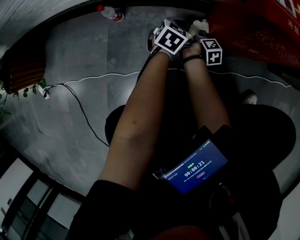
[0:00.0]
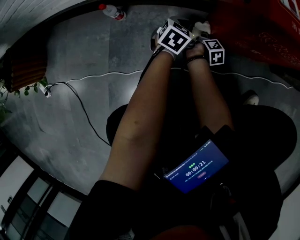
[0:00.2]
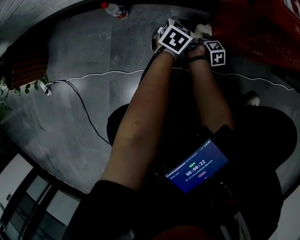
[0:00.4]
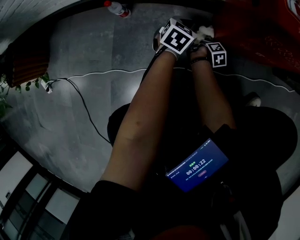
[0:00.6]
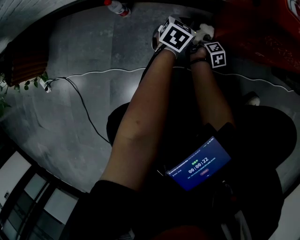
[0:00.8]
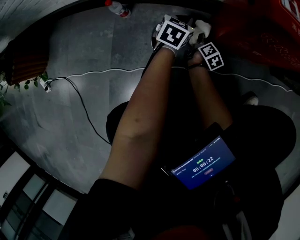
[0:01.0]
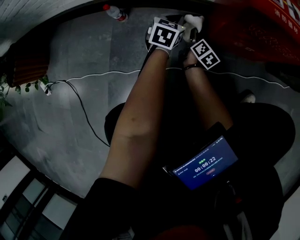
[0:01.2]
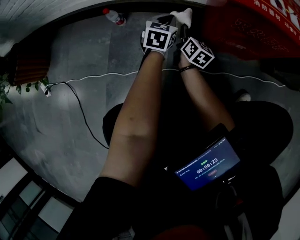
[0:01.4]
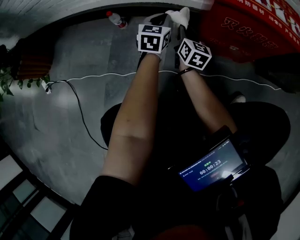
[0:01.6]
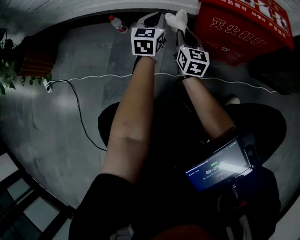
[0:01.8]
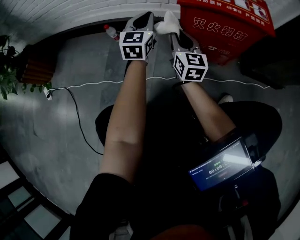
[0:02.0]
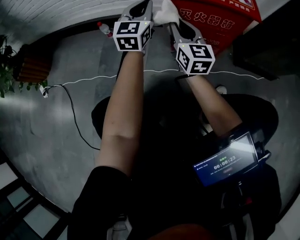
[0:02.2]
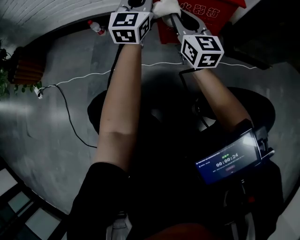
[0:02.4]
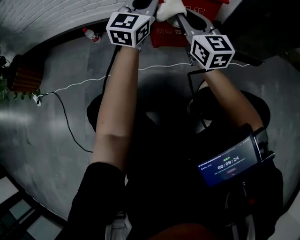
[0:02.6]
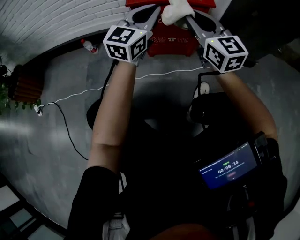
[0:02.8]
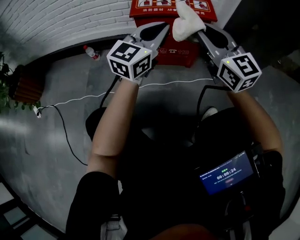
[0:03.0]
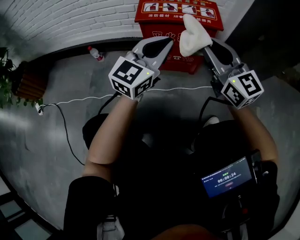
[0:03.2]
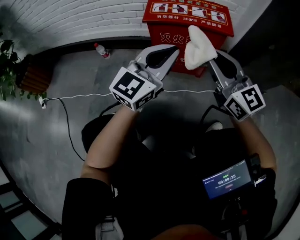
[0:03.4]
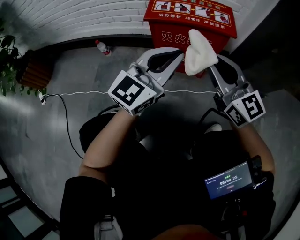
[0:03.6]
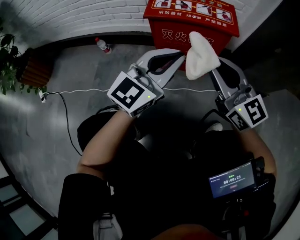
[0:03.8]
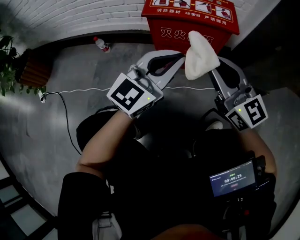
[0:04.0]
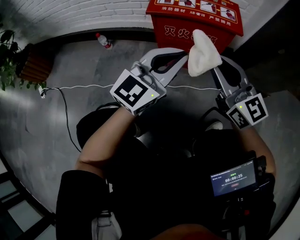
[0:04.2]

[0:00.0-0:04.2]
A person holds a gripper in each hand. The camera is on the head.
0:00.0 to 0:01.4: The right gripper heads upward and to the left, covering some 20 cm, and swivels approximately 50 degrees; the left gripper heads upward, covering about 10 cm, and swivels some 20 degrees.
0:01.4 to 0:02.8: The grippers both shift upward, to the right and backward by about 50 cm. The right gripper rolls counterclockwise, seen from behind, by approximately 40 degrees. Meanwhile the left gripper tilts its fingers some 40 degrees upward.
0:02.8 to 0:04.2: The left gripper travels backward by about 5 cm.

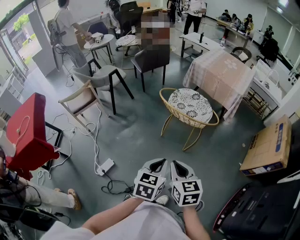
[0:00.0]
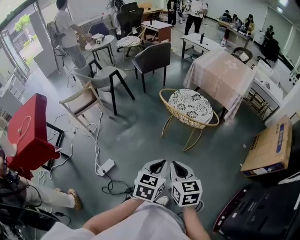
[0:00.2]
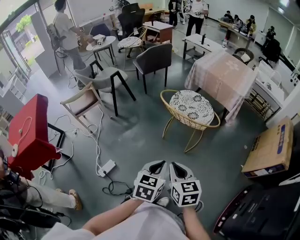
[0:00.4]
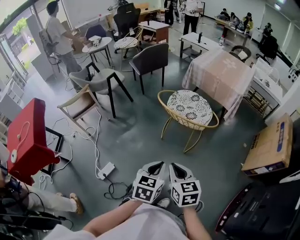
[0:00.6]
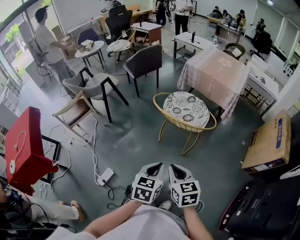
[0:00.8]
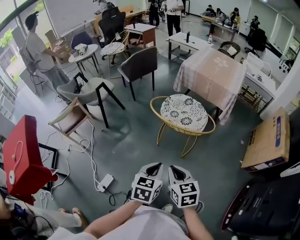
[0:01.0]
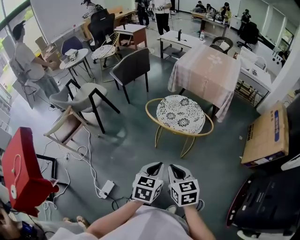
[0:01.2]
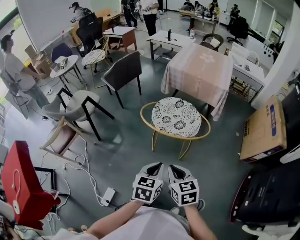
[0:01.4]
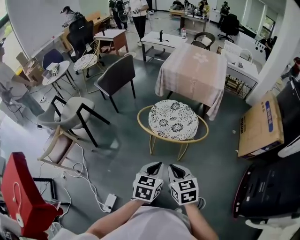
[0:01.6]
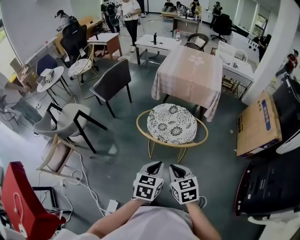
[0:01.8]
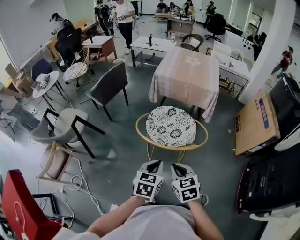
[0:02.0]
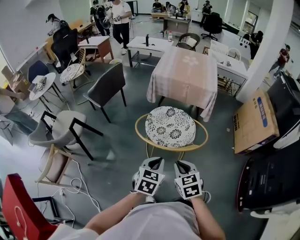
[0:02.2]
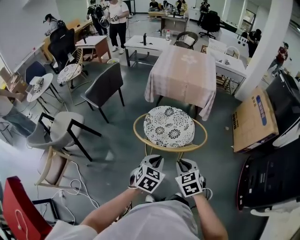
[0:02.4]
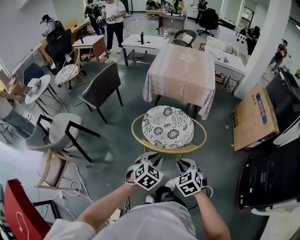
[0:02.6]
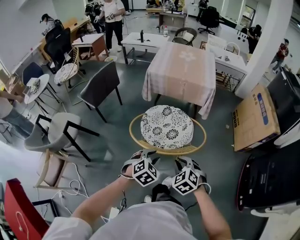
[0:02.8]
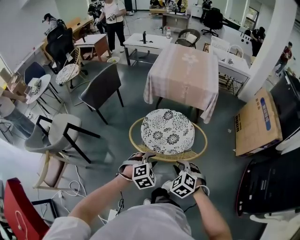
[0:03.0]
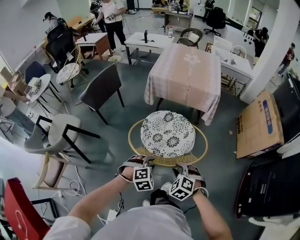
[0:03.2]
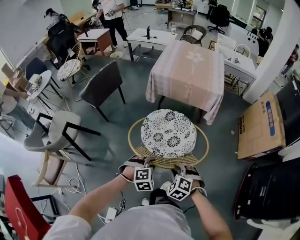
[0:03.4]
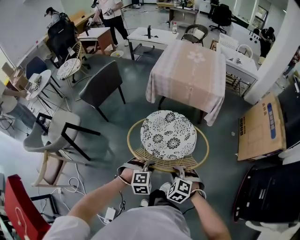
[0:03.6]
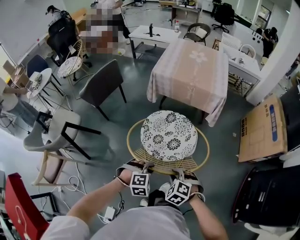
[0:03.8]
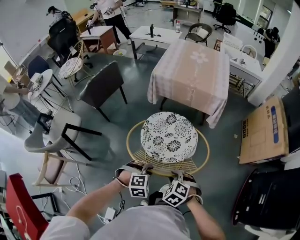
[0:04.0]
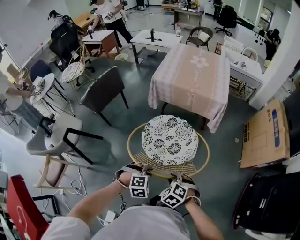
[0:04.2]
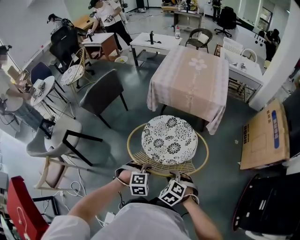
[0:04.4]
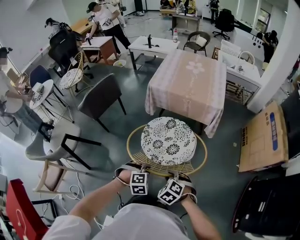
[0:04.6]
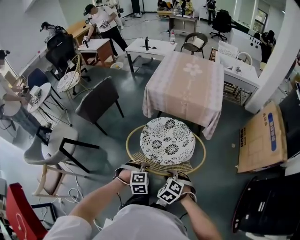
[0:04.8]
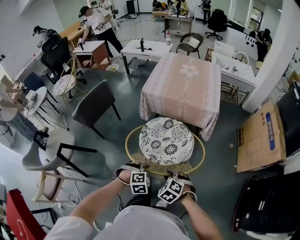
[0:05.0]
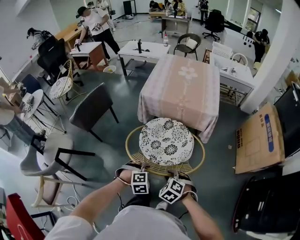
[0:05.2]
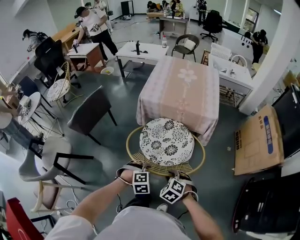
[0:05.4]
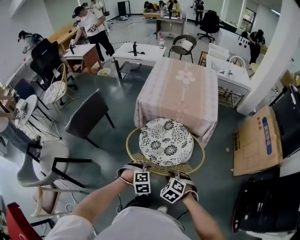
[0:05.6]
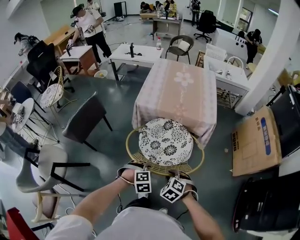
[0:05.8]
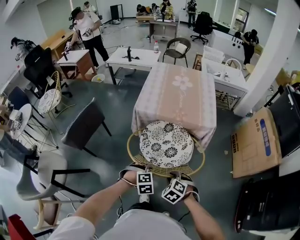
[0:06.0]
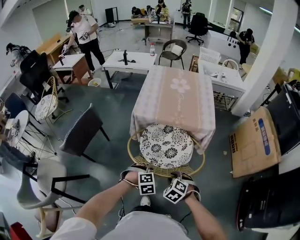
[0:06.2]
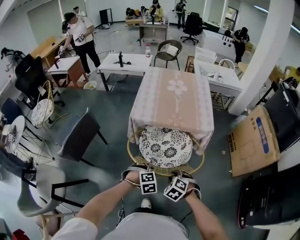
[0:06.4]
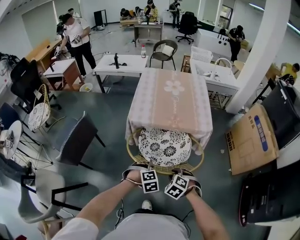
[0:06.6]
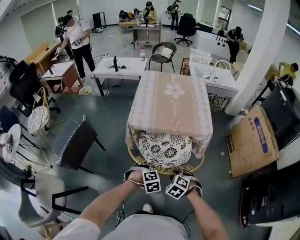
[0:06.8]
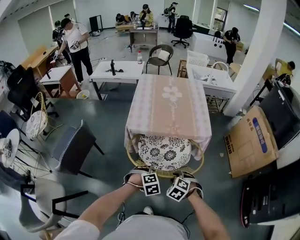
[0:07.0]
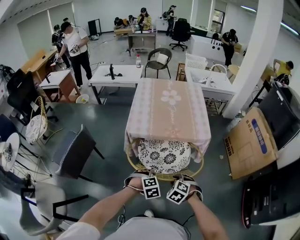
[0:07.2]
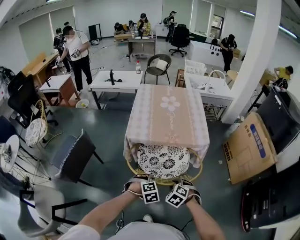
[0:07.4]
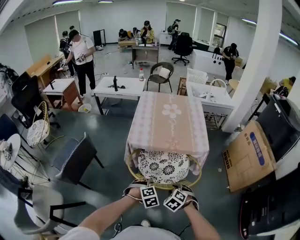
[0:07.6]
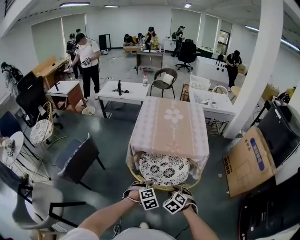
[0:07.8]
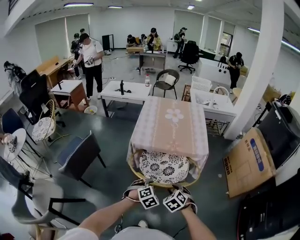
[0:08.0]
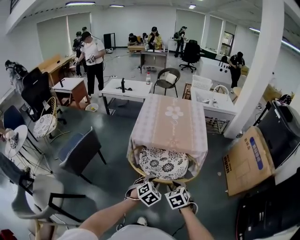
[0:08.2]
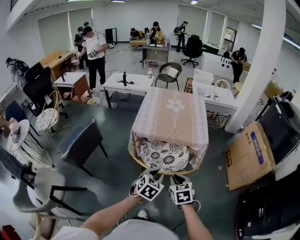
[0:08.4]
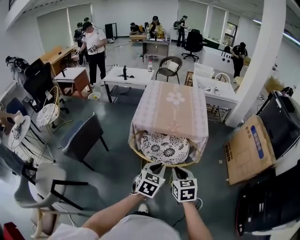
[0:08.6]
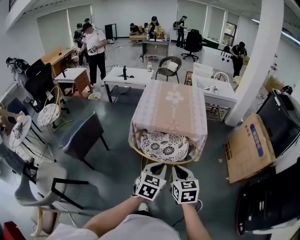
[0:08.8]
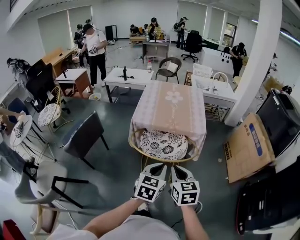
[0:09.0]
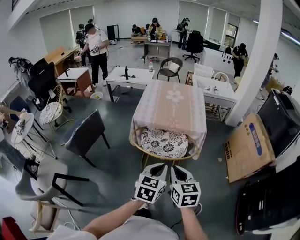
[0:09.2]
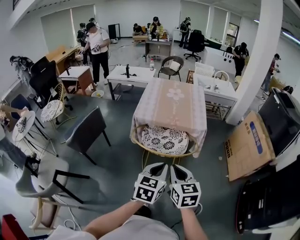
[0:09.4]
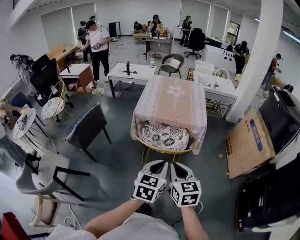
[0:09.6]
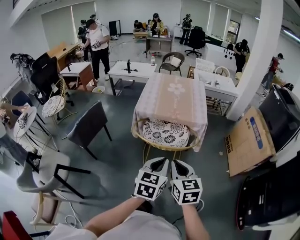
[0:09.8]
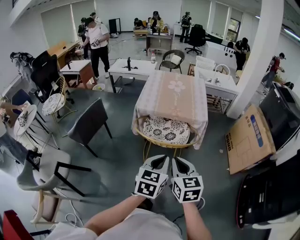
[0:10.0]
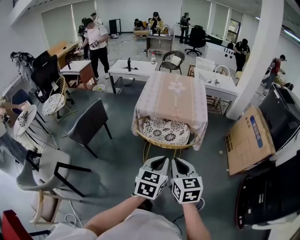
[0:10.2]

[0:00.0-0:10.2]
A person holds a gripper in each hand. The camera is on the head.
0:00.0 to 0:01.4: Both grippers move forward, some 15 cm.
0:01.4 to 0:03.0: Both grippers travel together forward and downward, some 20 cm. The right gripper changes its angle by some 40 degrees, while the left gripper twists about 60 degrees clockwise, seen from behind, and opens.
0:03.0 to 0:04.4: Both grippers move forward, about 5 cm.
0:04.4 to 0:05.8: The two grippers go approximately 20 cm forward.
0:05.8 to 0:07.2: The two grippers go roughly 15 cm forward.
0:07.2 to 0:08.8: Both grippers travel together upward and backward, roughly 20 cm. The left gripper points its fingers about 40 degrees further upward; the right gripper tilts its fingers approximately 40 degrees upward.
0:08.8 to 0:10.2: The grippers both shift backward by about 10 cm.

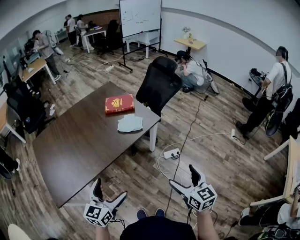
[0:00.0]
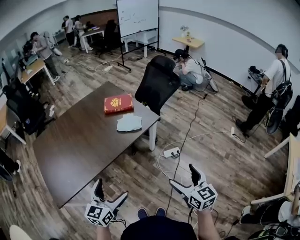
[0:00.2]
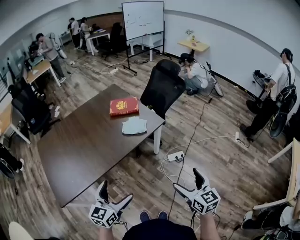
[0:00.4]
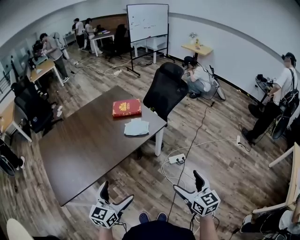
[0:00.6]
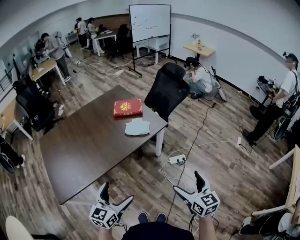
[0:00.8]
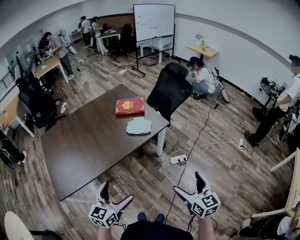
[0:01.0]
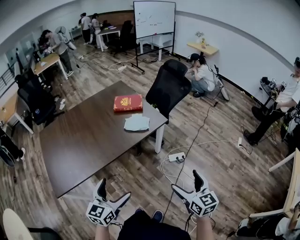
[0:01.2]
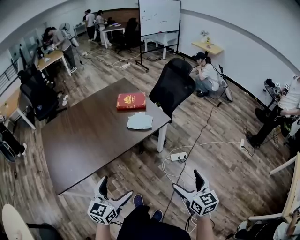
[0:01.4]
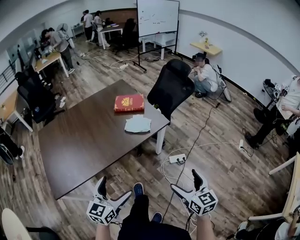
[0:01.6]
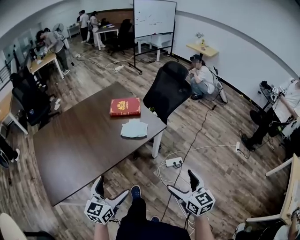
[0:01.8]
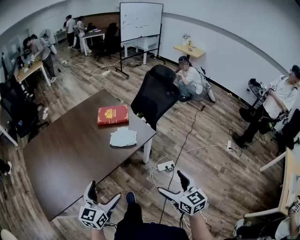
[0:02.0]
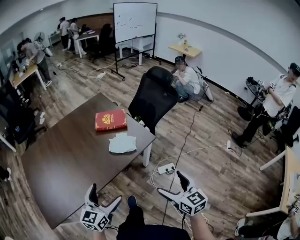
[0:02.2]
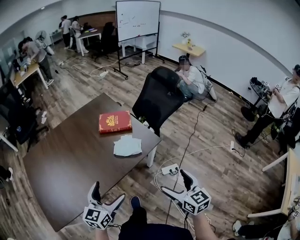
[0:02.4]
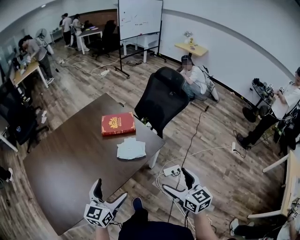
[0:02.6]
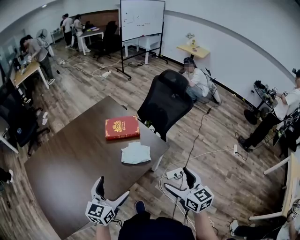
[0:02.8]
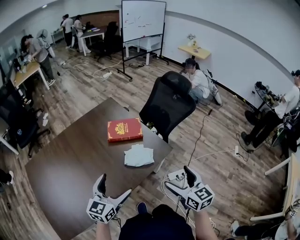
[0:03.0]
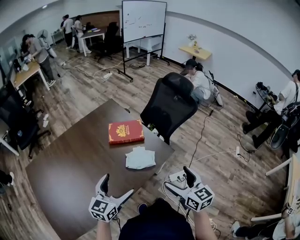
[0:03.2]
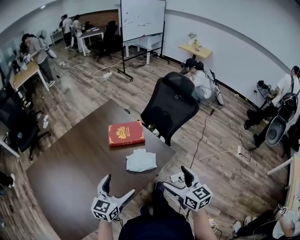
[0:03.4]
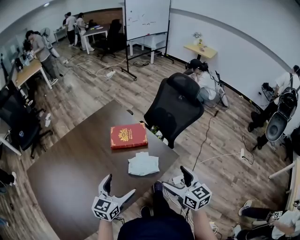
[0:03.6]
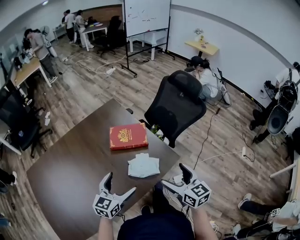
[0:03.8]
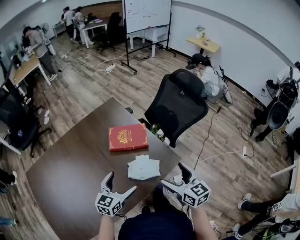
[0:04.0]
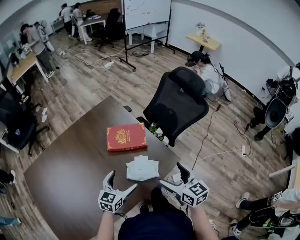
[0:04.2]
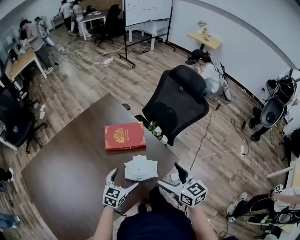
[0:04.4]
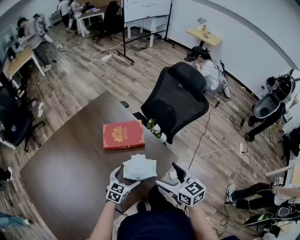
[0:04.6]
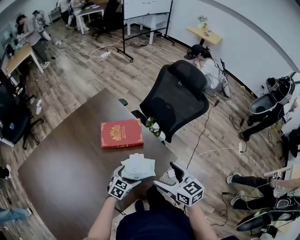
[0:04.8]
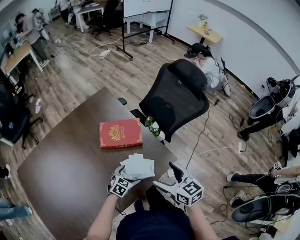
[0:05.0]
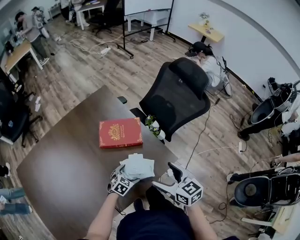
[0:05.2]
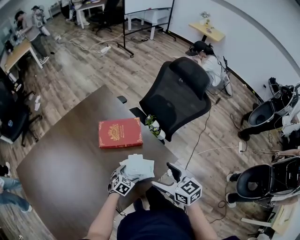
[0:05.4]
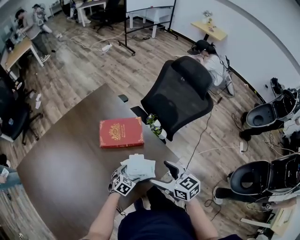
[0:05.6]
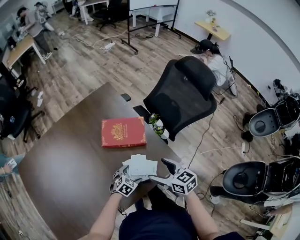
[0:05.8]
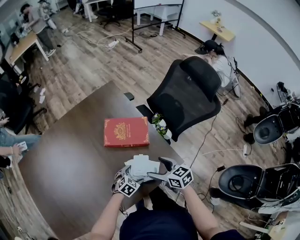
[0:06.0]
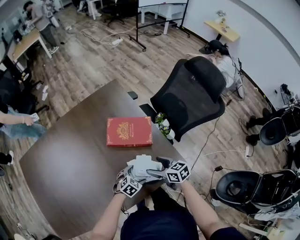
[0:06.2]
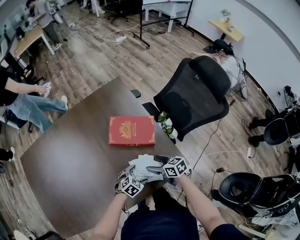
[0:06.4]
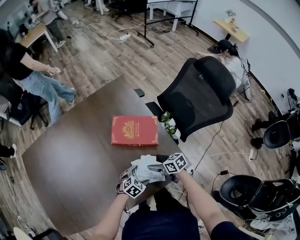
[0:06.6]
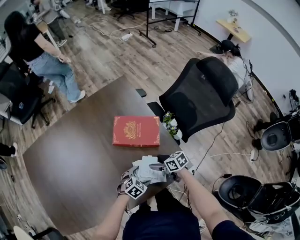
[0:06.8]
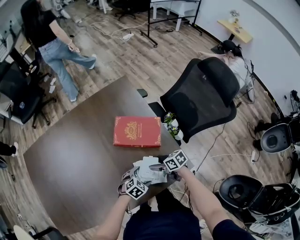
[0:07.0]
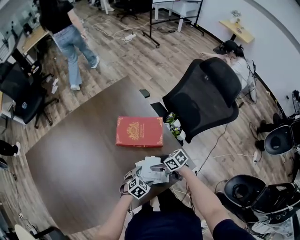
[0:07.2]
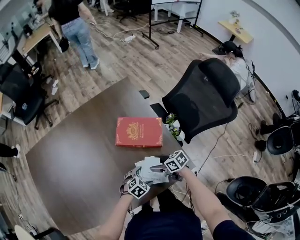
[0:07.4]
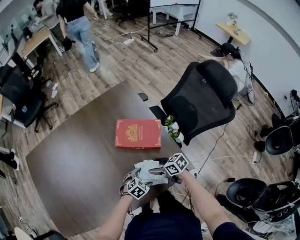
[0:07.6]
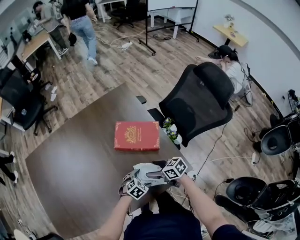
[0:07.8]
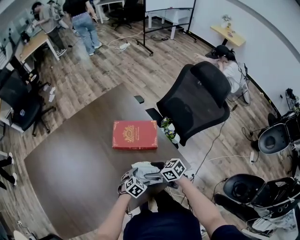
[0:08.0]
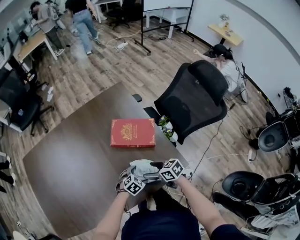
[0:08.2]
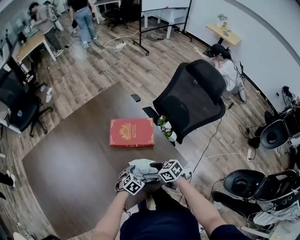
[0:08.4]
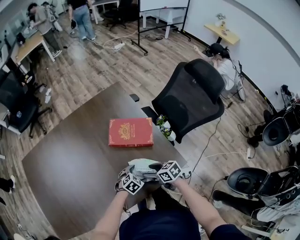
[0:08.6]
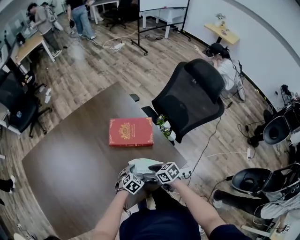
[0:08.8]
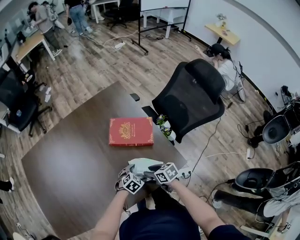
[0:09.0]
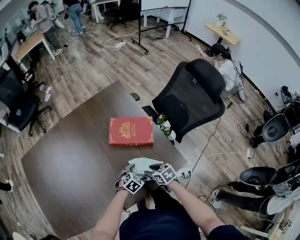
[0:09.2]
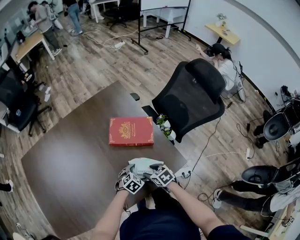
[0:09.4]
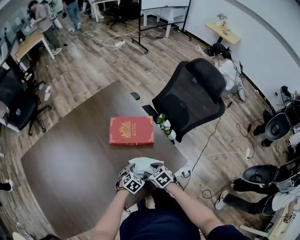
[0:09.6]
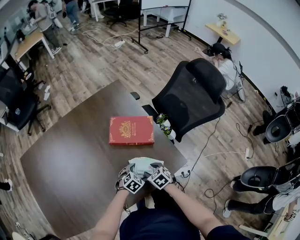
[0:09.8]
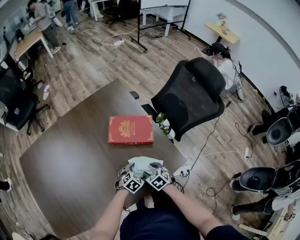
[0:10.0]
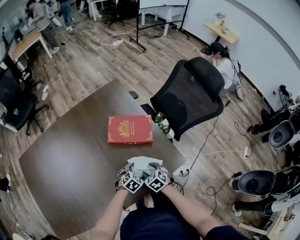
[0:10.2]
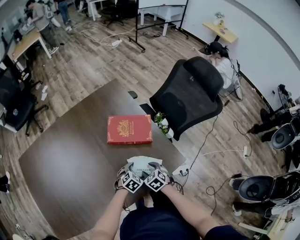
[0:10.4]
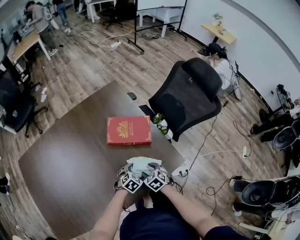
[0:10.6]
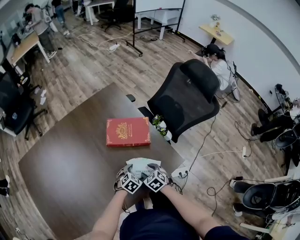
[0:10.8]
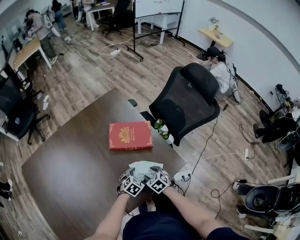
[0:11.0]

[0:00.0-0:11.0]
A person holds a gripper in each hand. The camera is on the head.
0:00.0 to 0:01.6: The grippers move only a little.
0:01.6 to 0:03.2: Both grippers move forward, approximately 30 cm.
0:03.2 to 0:04.8: The right gripper moves forward and downward, some 20 cm. The left gripper goes some 30 cm downward and forward, and changes its angle by roughly 30 degrees.
0:04.8 to 0:06.2: The right gripper shifts approximately 20 cm downward and forward, and rotates about 30 degrees; the left gripper goes about 10 cm downward.
0:06.2 to 0:07.8: The right gripper moves about 10 cm downward and comes back.
0:07.8 to 0:09.4: The right gripper shifts by roughly 5 cm, and changes its angle by about 20 degrees.
0:09.4 to 0:11.0: The right gripper turns by some 20 degrees.
